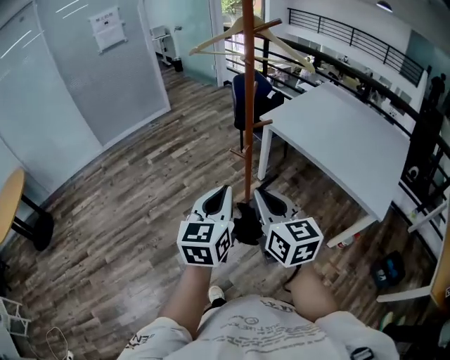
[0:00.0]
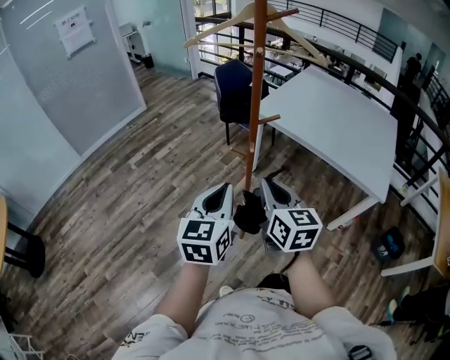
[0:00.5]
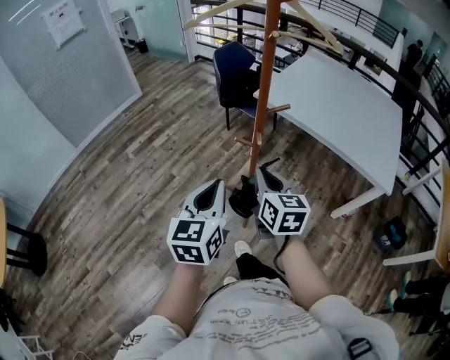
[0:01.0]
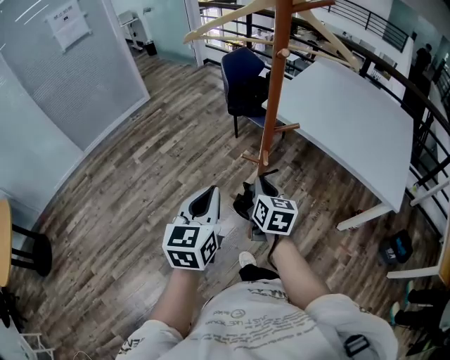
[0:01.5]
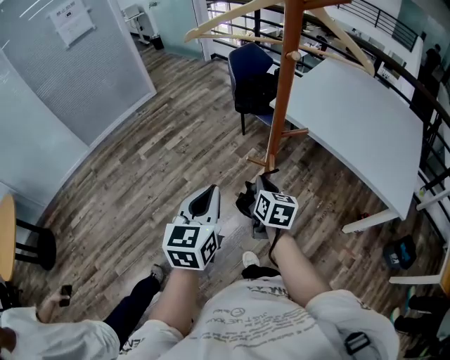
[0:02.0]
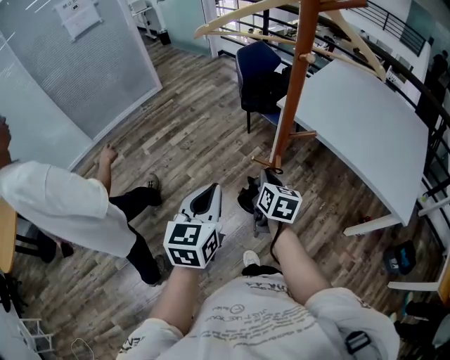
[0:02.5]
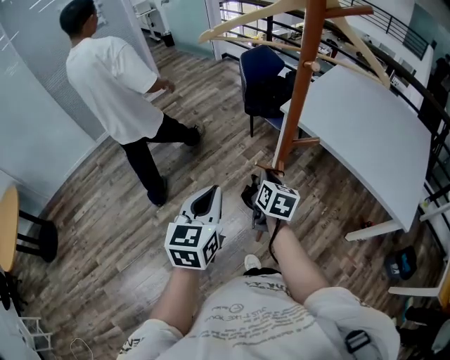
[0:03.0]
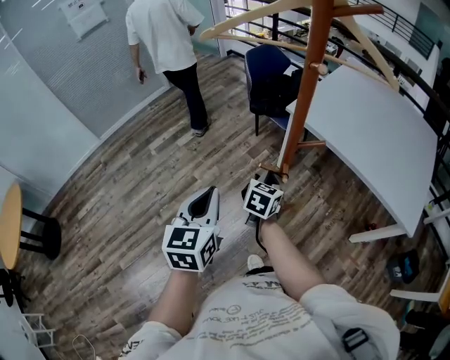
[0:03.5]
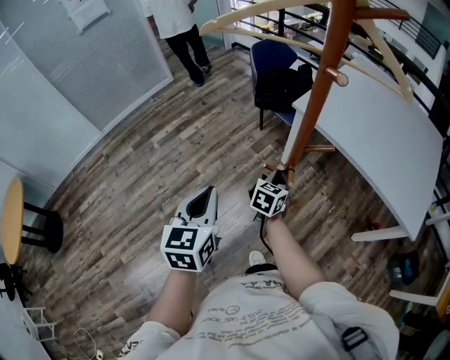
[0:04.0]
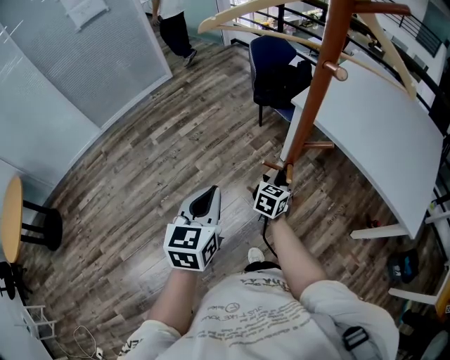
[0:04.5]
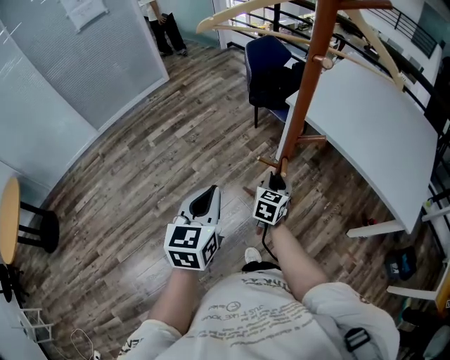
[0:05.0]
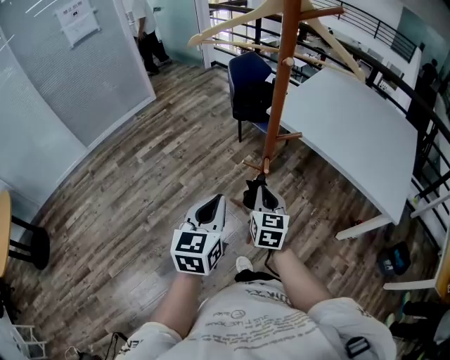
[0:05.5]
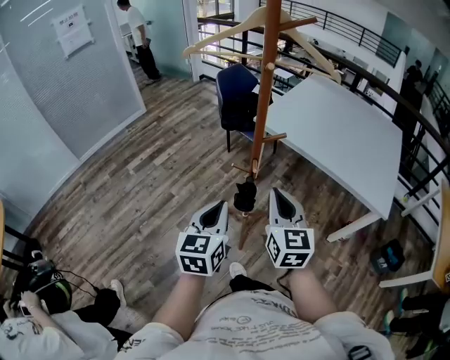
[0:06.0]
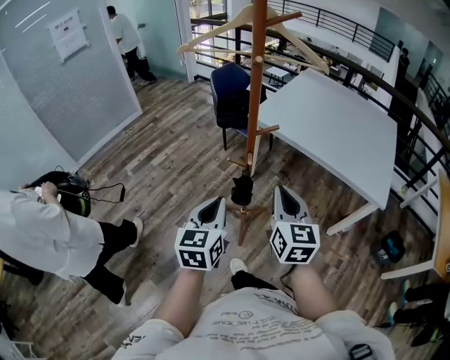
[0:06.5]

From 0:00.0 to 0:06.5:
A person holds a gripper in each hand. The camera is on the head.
From 0:00.0 to 0:02.0: The left gripper heads forward and to the left, covering roughly 25 cm, while the right gripper is displaced forward and downward by some 35 cm, and changes its angle by some 30 degrees.
From 0:02.0 to 0:04.5: The left gripper moves roughly 5 cm. The right gripper travels forward and downward by roughly 10 cm, and swivels approximately 30 degrees.
From 0:04.5 to 0:06.5: The right gripper travels upward and backward by approximately 35 cm, rotates about 30 degrees, and opens, then closes once more. Meanwhile the left gripper shifts some 15 cm backward and to the right.

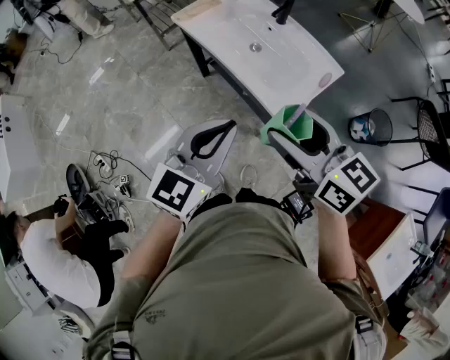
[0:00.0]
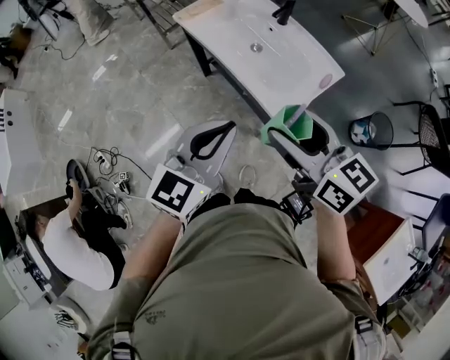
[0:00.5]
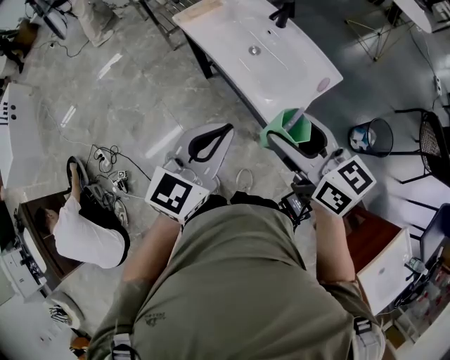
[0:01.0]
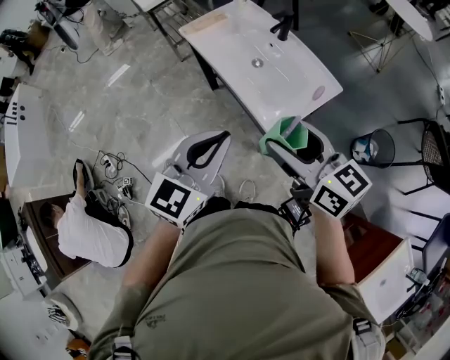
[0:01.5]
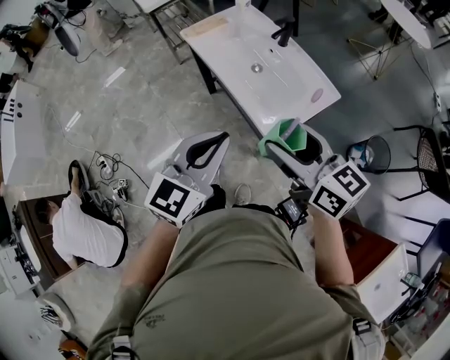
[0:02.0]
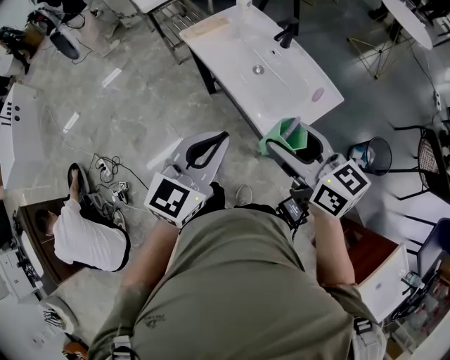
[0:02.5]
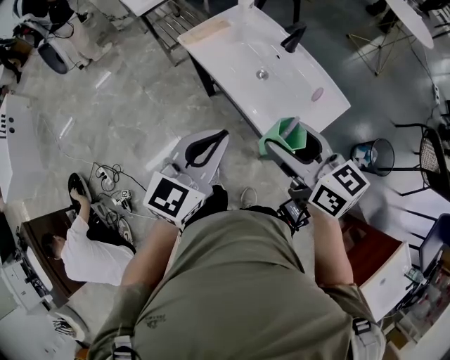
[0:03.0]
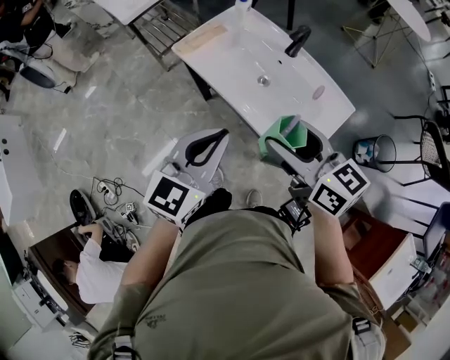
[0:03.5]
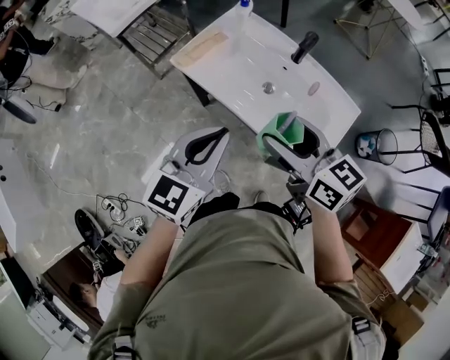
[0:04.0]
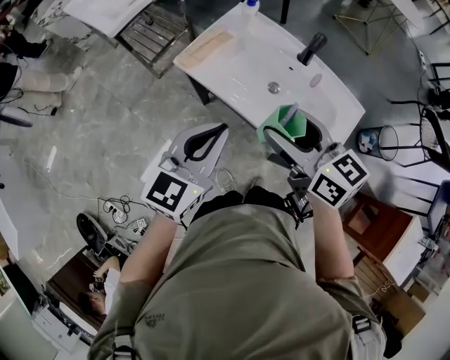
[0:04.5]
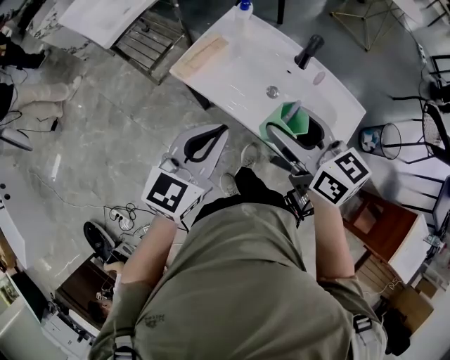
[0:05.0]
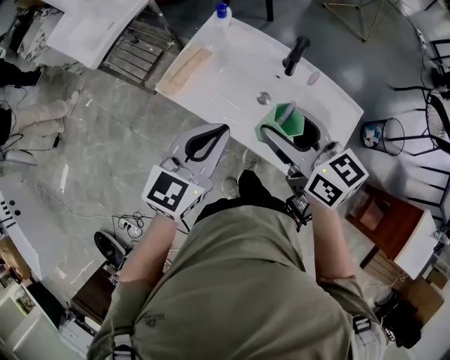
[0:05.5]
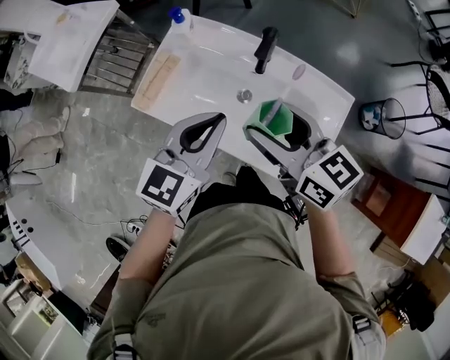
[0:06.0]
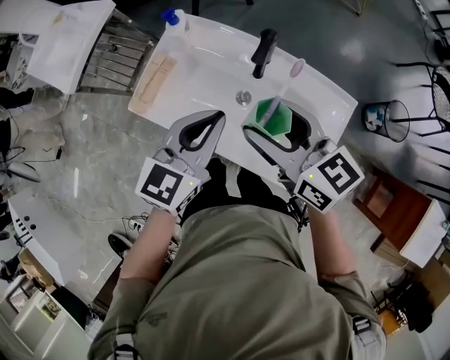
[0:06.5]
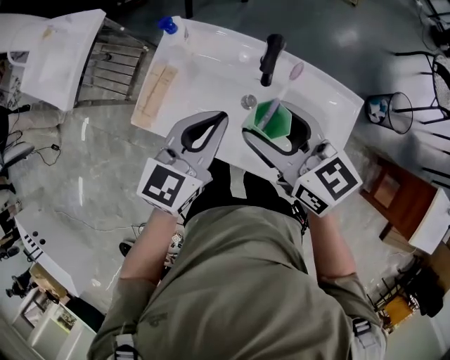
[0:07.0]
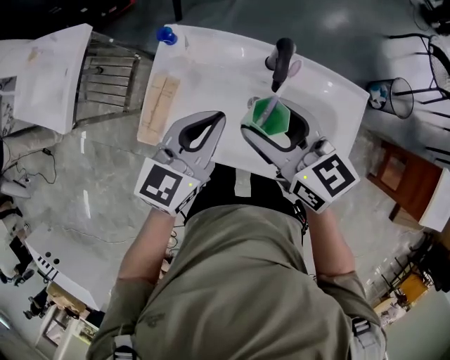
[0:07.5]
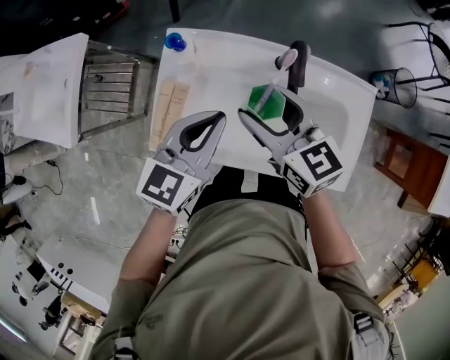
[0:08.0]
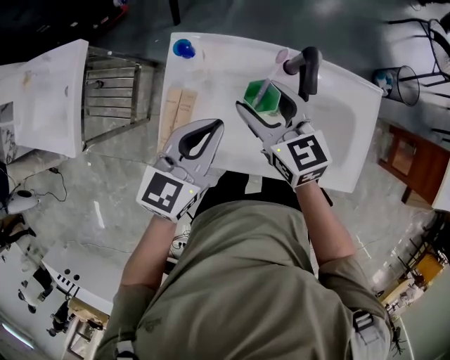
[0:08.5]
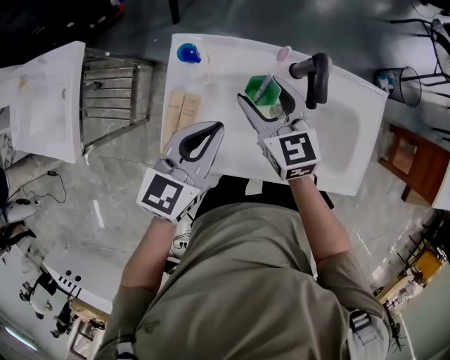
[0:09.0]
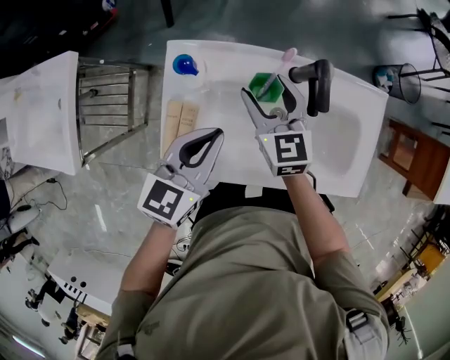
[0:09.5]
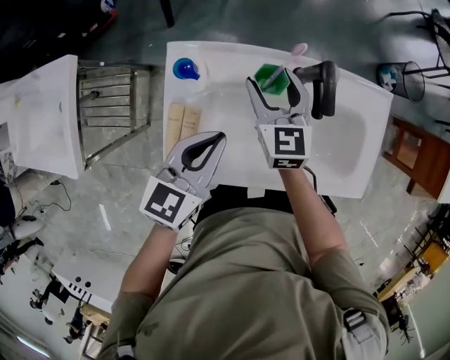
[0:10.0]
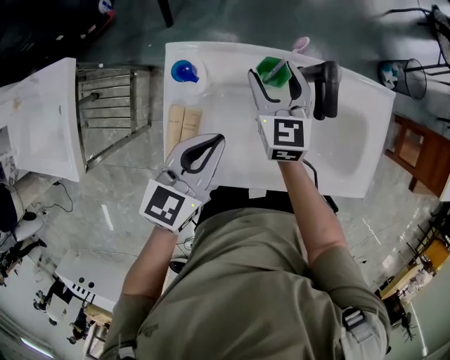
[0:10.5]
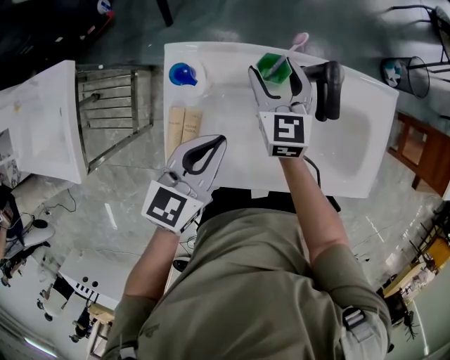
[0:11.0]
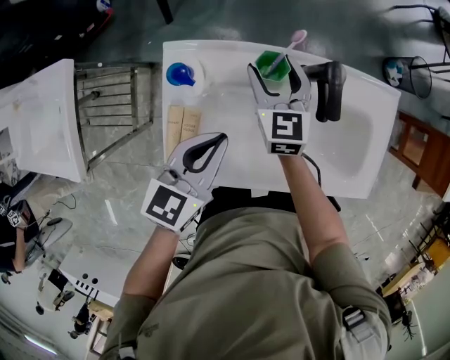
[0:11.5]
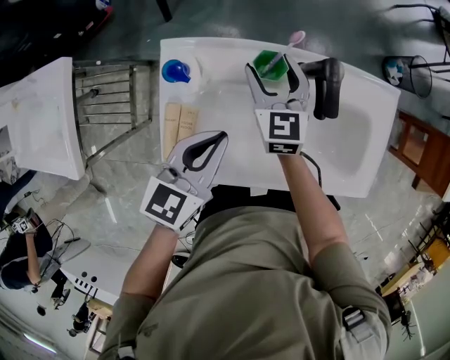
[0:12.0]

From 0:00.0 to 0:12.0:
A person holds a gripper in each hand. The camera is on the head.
From 0:00.0 to 0:02.0: The grippers make only small movements.
From 0:02.0 to 0:04.0: The two grippers go some 25 cm forward and to the left.
From 0:04.0 to 0:06.0: Both grippers travel together forward and to the right, roughly 20 cm.
From 0:06.0 to 0:08.0: The two grippers go approximately 15 cm forward, to the left and downward.
From 0:08.0 to 0:10.0: The right gripper travels forward and downward by some 15 cm, and changes its angle by some 30 degrees; the left gripper heads downward and to the left, covering roughly 10 cm.
From 0:10.0 to 0:12.0: There are only small adjustments of the grippers.

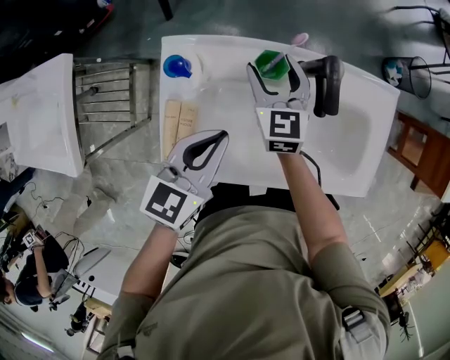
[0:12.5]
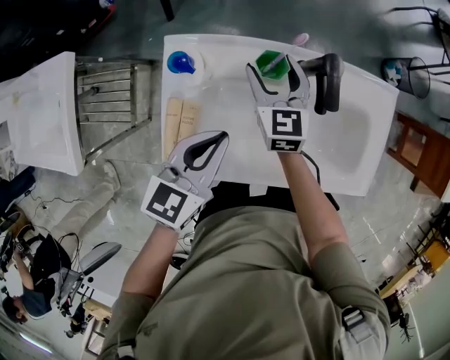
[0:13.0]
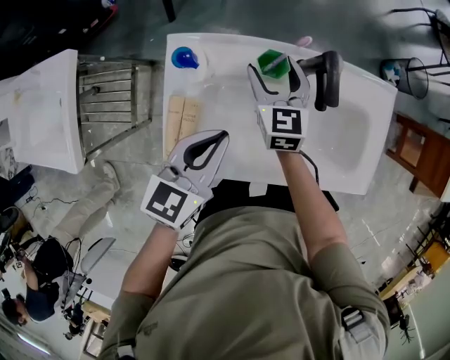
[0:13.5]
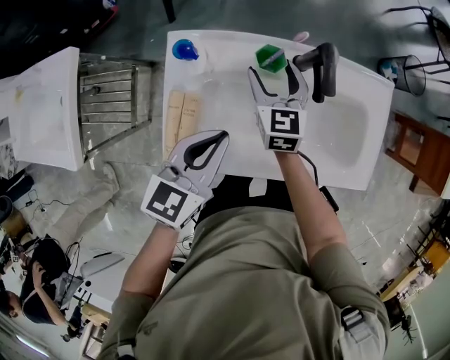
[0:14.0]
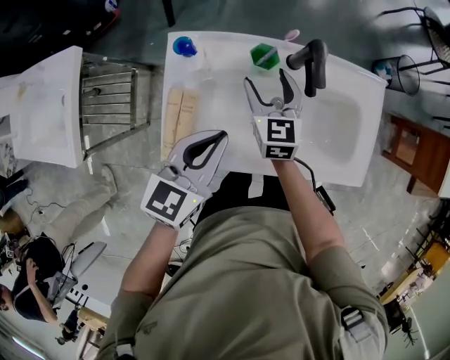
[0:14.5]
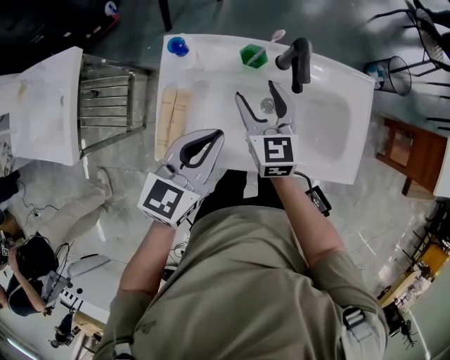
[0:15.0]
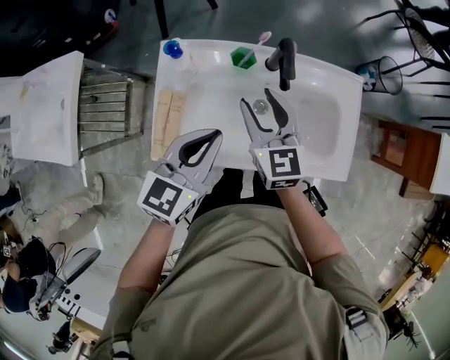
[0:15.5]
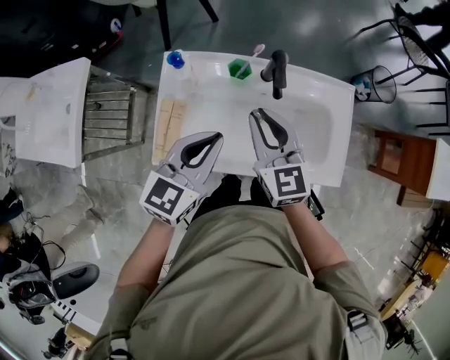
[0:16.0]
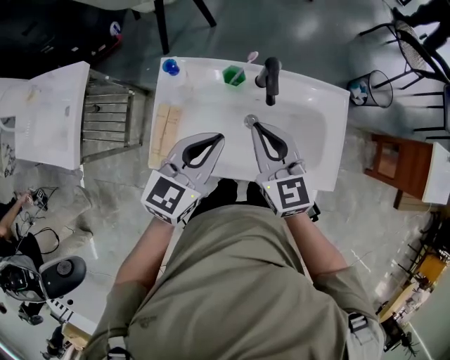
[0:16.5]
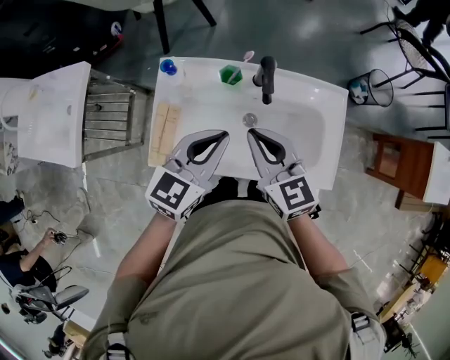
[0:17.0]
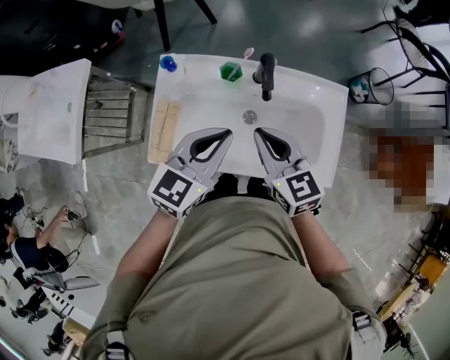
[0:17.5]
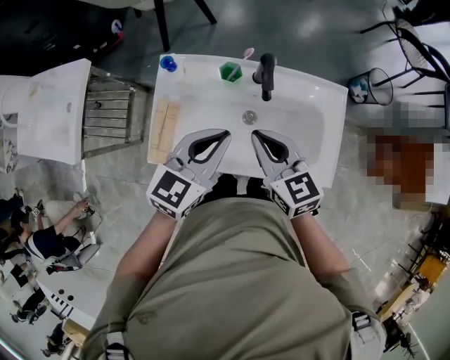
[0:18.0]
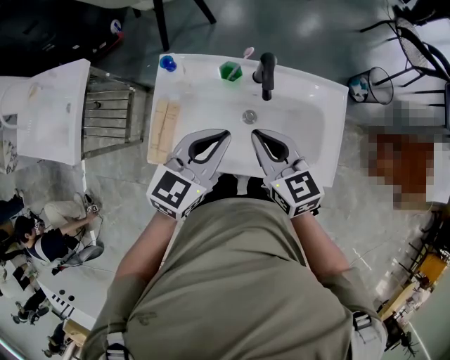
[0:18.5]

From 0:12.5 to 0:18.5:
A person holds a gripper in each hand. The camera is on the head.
From 0:12.5 to 0:14.5: The left gripper ends up about 5 cm from where it was; the right gripper is displaced backward by roughly 5 cm.
From 0:14.5 to 0:16.5: The right gripper shifts approximately 20 cm upward, backward and to the right, and closes. The left gripper heads upward and to the right, covering about 10 cm.
From 0:16.5 to 0:18.5: The grippers move only a little.

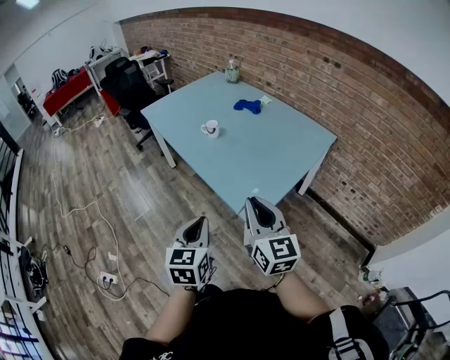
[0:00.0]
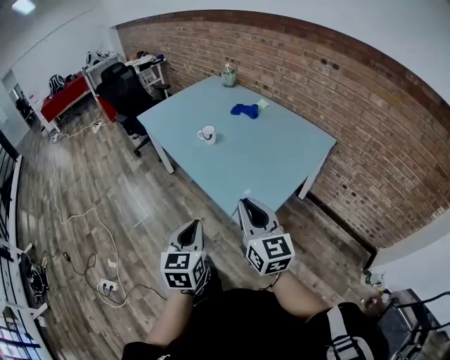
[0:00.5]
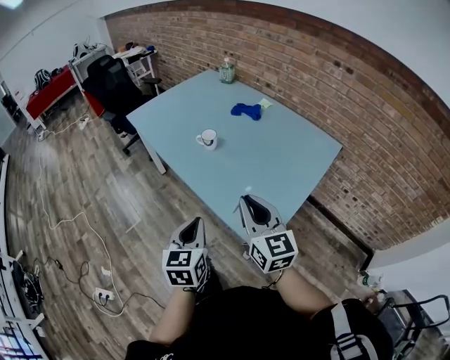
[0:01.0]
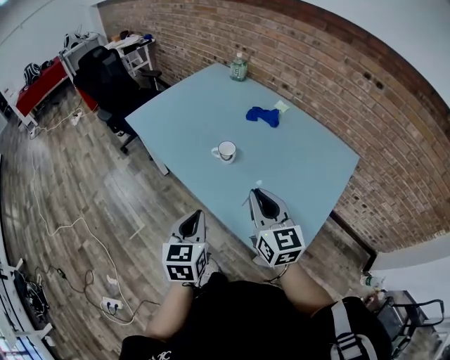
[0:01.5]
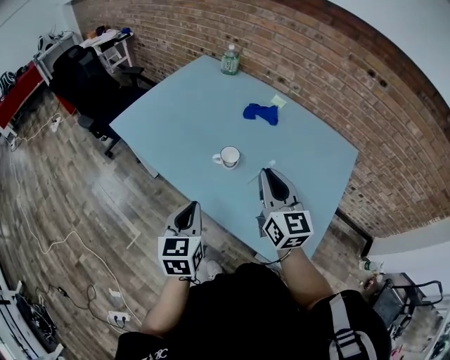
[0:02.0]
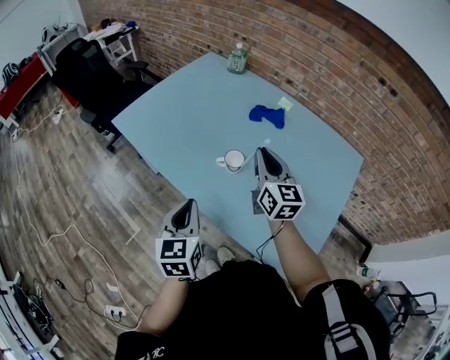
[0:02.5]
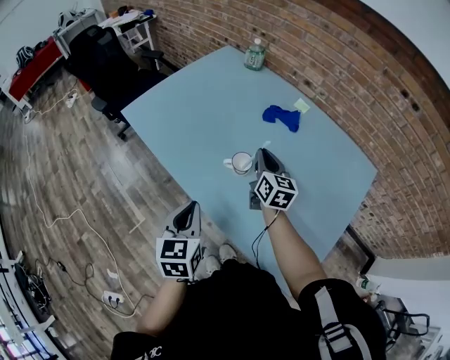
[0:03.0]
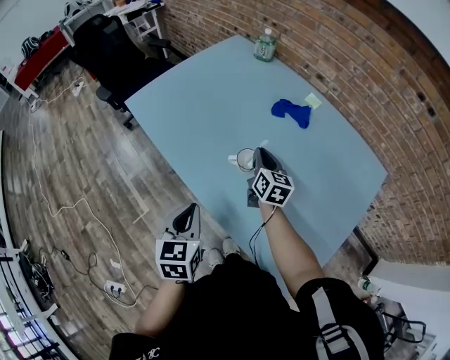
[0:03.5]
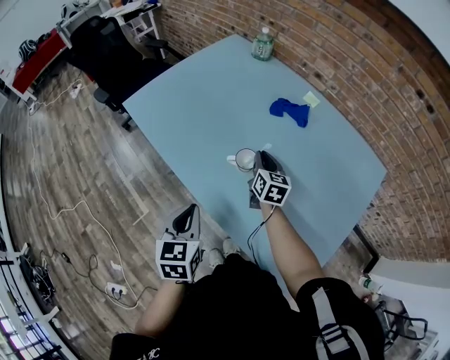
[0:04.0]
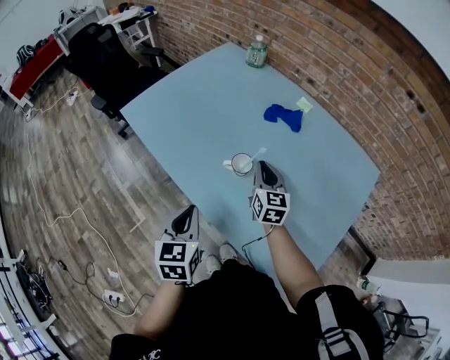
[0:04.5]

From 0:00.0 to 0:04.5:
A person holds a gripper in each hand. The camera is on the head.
From 0:00.0 to 0:02.0: Both grippers are carried forward, some 50 cm.
From 0:02.0 to 0:04.5: The right gripper goes roughly 20 cm forward and downward; the left gripper shifts about 5 cm forward.
